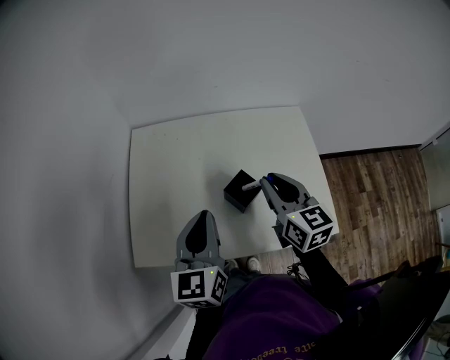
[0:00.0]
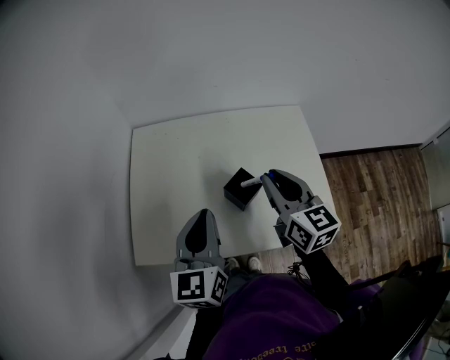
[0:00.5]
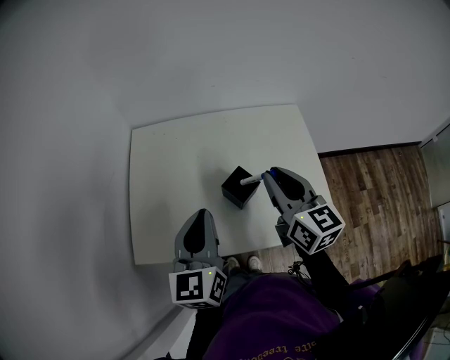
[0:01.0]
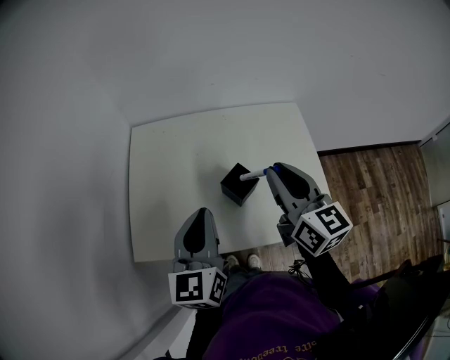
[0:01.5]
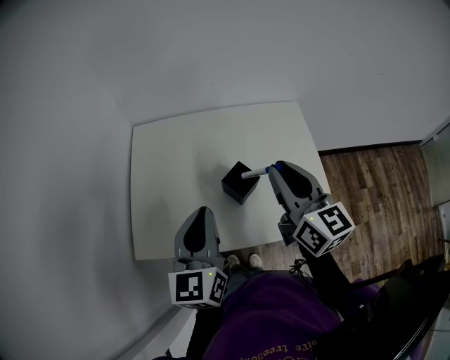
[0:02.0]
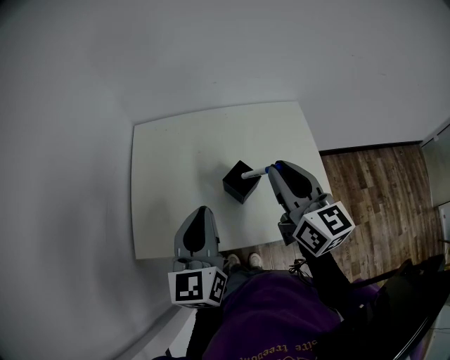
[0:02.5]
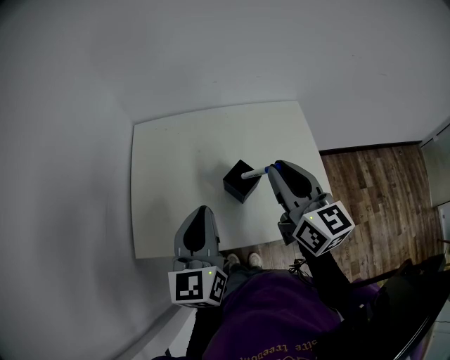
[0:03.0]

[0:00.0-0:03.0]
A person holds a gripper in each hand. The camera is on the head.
0:00.0 to 0:01.5: The right gripper heads upward, covering some 5 cm.
0:01.5 to 0:03.0: Both grippers stay put.

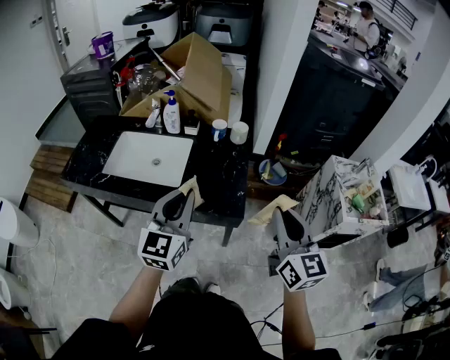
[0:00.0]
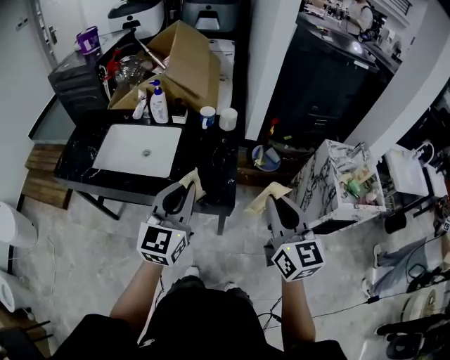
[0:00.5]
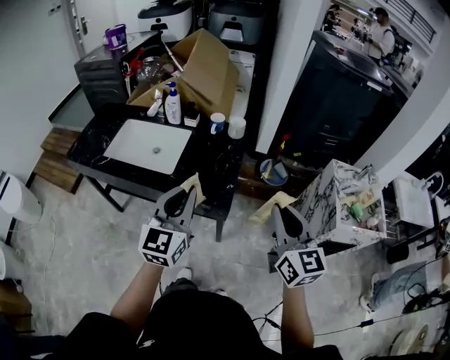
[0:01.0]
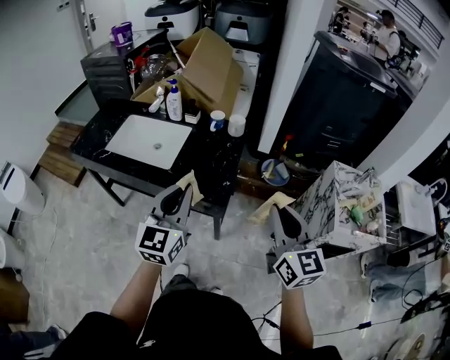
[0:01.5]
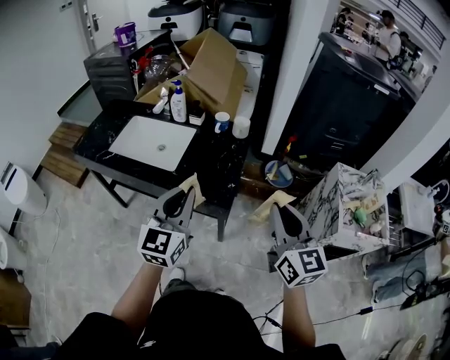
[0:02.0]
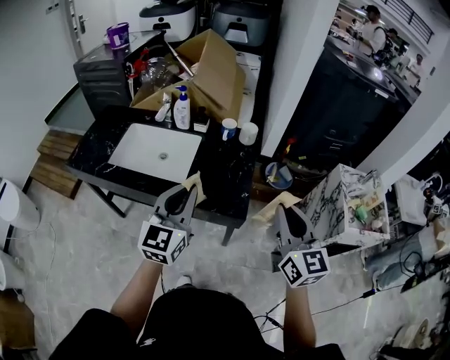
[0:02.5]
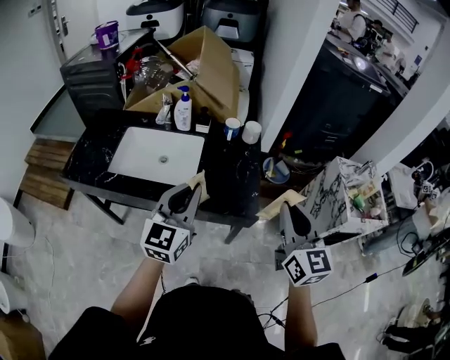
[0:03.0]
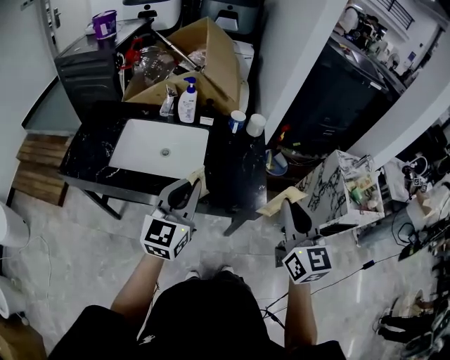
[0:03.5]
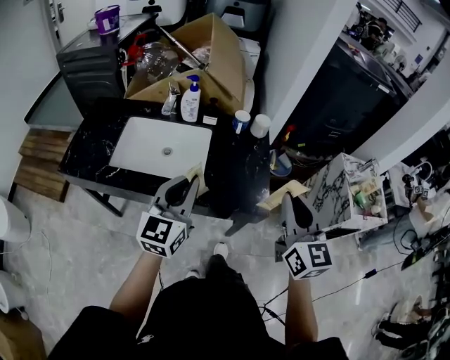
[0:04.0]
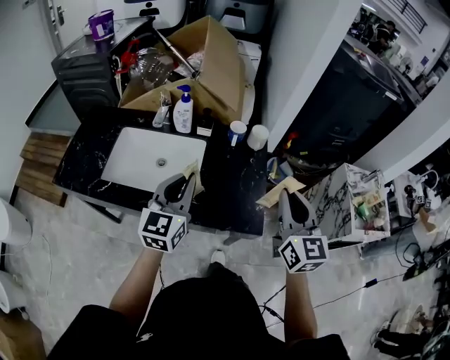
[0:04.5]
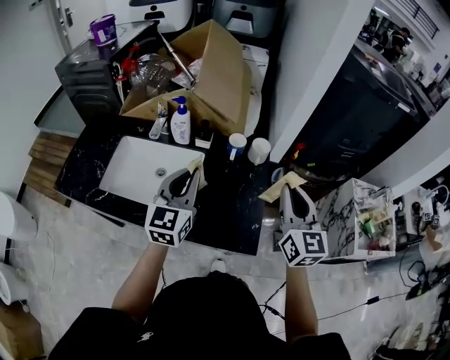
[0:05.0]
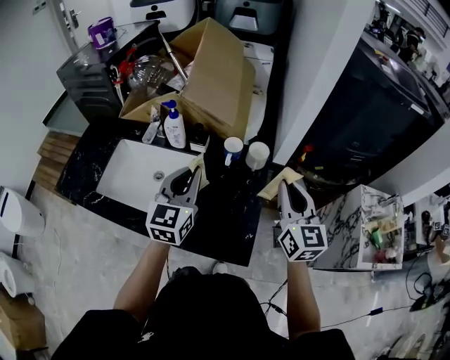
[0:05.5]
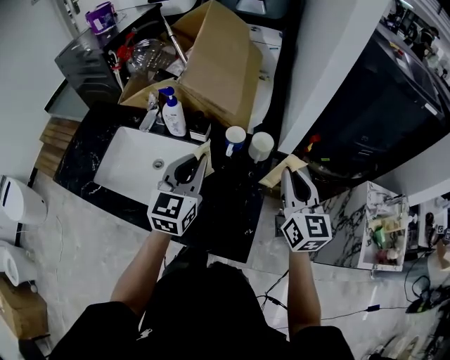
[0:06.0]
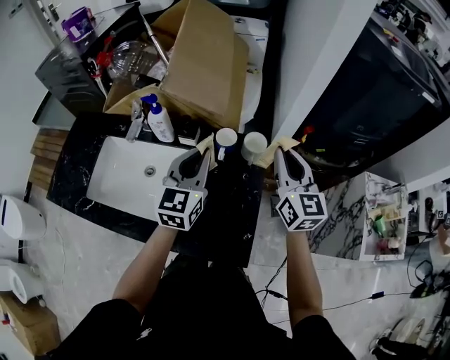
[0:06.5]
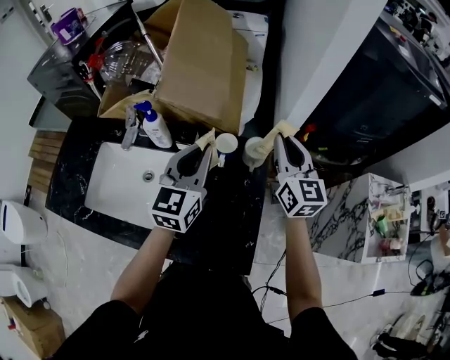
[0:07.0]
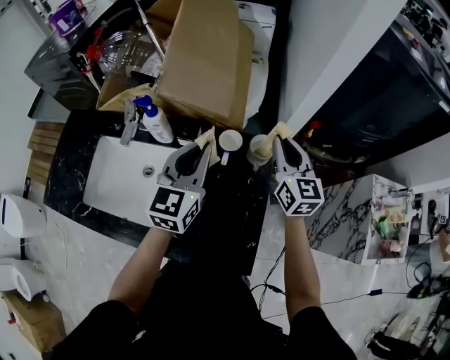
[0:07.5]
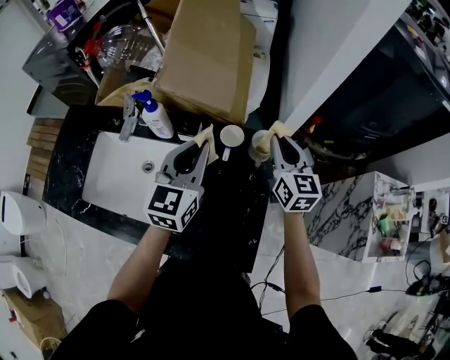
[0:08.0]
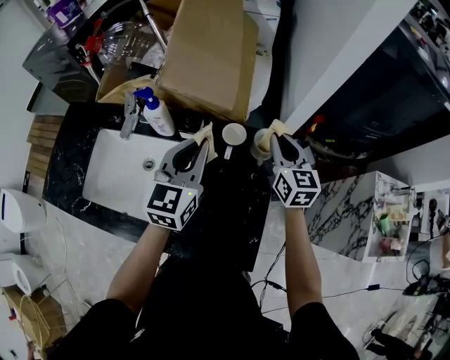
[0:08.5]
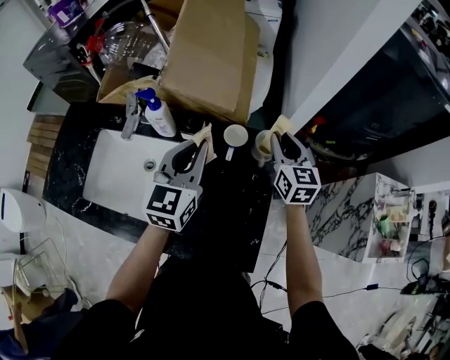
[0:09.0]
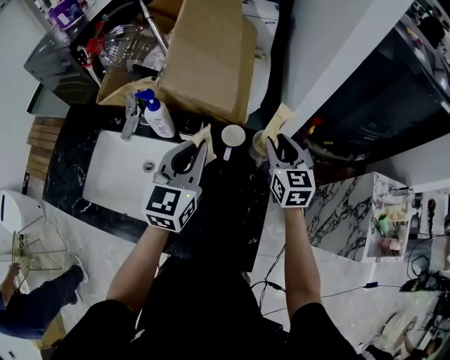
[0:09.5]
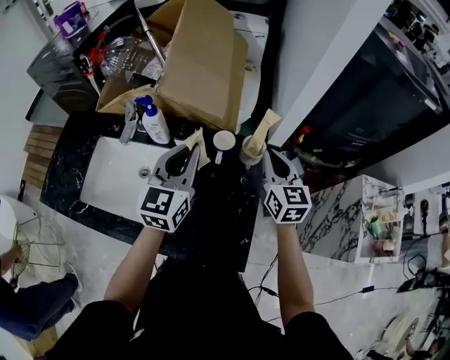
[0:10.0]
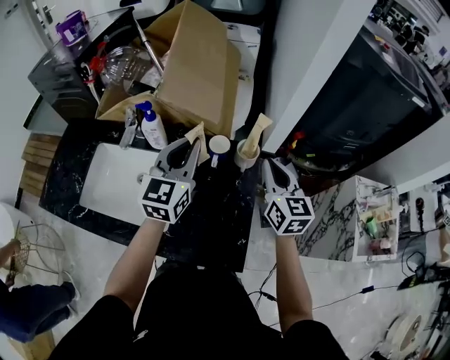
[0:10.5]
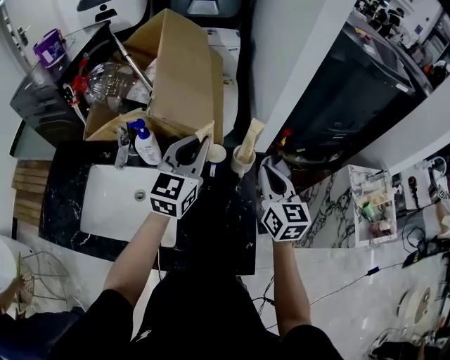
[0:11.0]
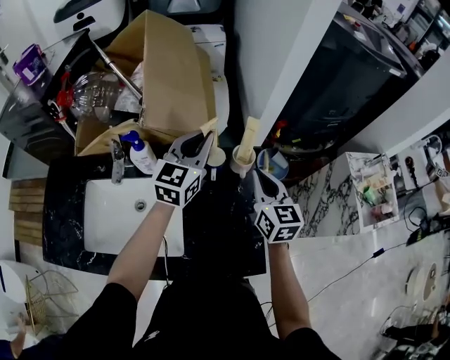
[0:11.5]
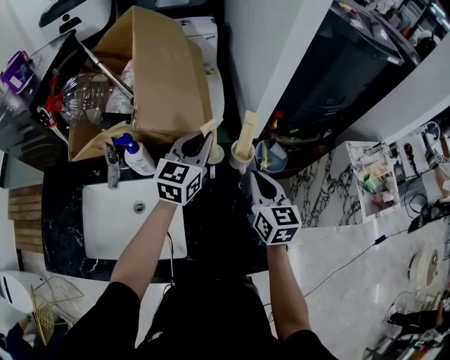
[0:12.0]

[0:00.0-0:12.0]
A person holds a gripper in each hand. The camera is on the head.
0:00.0 to 0:02.0: Both grippers travel together to the right, some 10 cm.
0:02.0 to 0:04.0: The left gripper heads to the left and forward, covering roughly 20 cm, while the right gripper goes about 20 cm to the left.
0:04.0 to 0:06.0: The right gripper shifts roughly 30 cm forward. Meanwhile the left gripper is displaced forward and to the right by some 25 cm.
0:06.0 to 0:08.0: The right gripper goes roughly 15 cm forward and downward. The left gripper goes roughly 10 cm forward.
0:08.0 to 0:10.0: The right gripper opens, then closes again.
0:10.0 to 0:12.0: The right gripper heads backward, covering roughly 5 cm; the left gripper shifts about 10 cm forward, and swivels about 20 degrees.

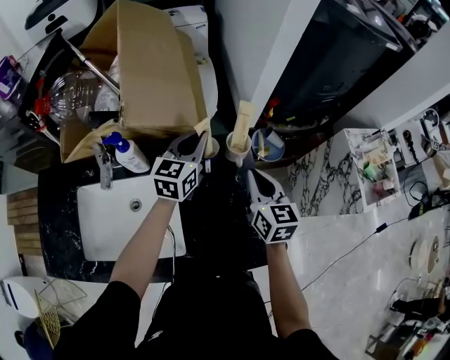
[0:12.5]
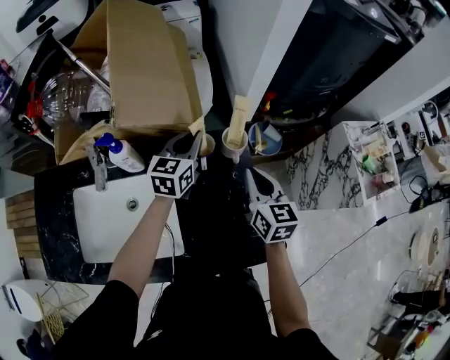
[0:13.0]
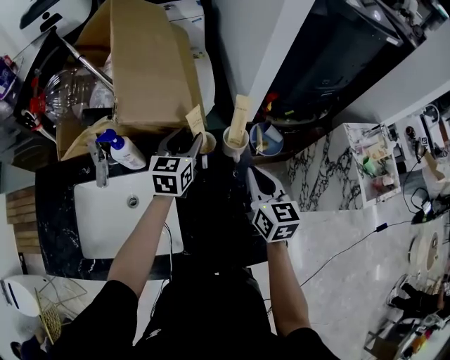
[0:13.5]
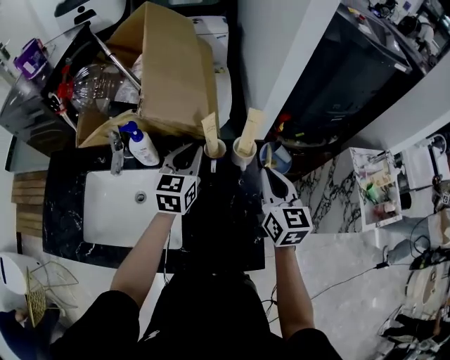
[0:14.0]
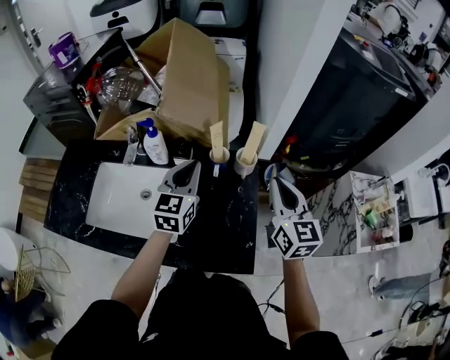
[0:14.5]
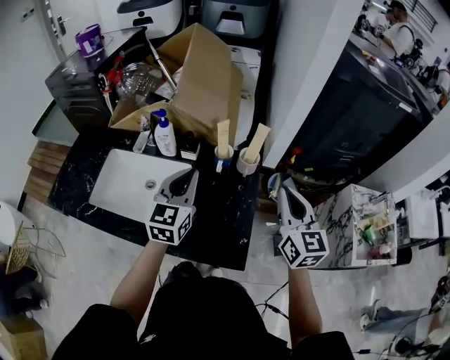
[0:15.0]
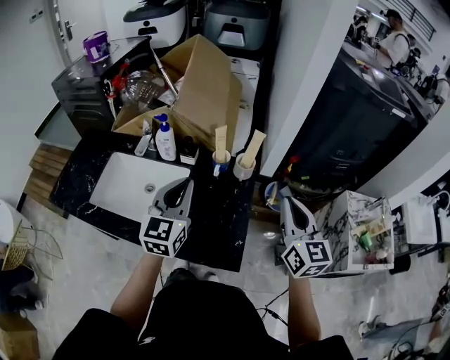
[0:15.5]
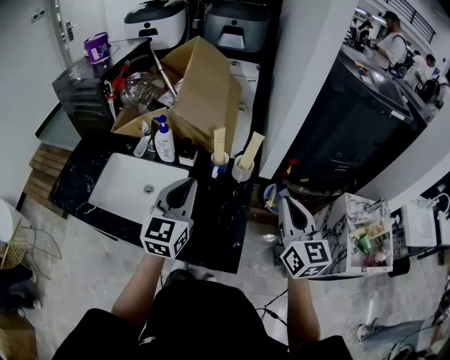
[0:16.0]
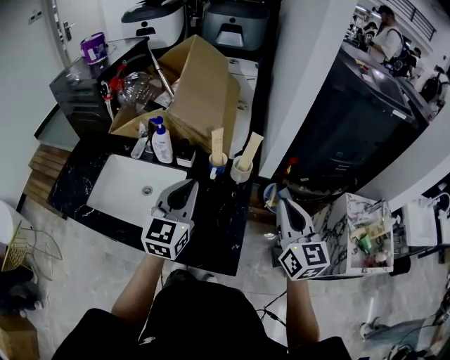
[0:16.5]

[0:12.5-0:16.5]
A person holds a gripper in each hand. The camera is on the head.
0:12.5 to 0:14.5: The right gripper goes some 10 cm upward and to the right. Meanwhile the left gripper travels backward and upward by some 15 cm, rotates about 20 degrees, and opens and closes again.
0:14.5 to 0:16.5: The left gripper shifts roughly 10 cm backward and upward, while the right gripper heads backward and to the right, covering about 10 cm.

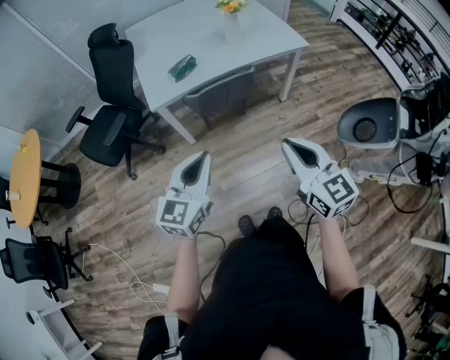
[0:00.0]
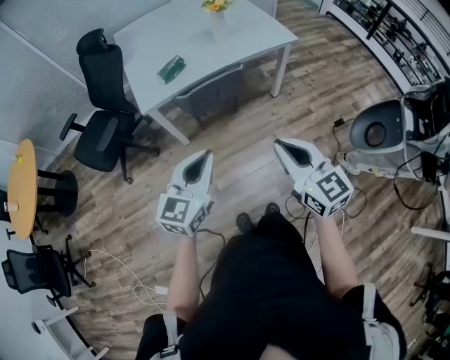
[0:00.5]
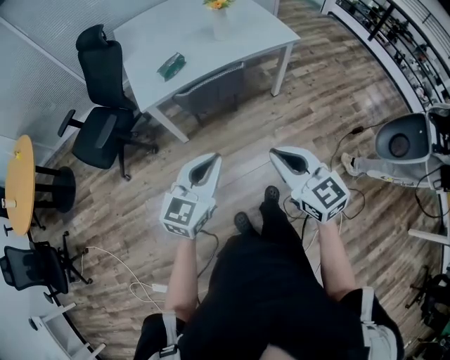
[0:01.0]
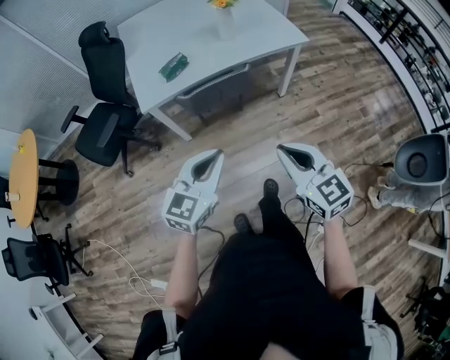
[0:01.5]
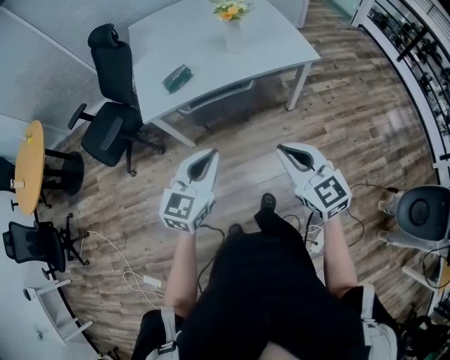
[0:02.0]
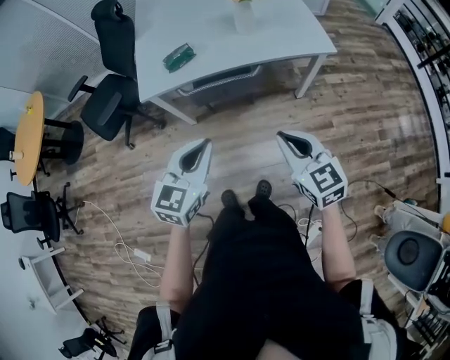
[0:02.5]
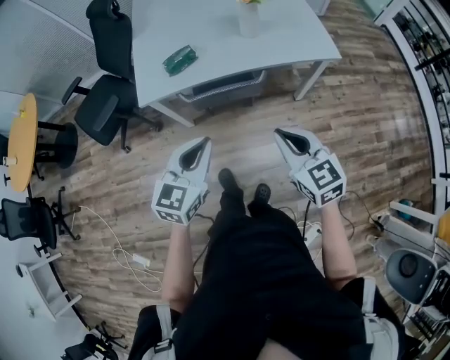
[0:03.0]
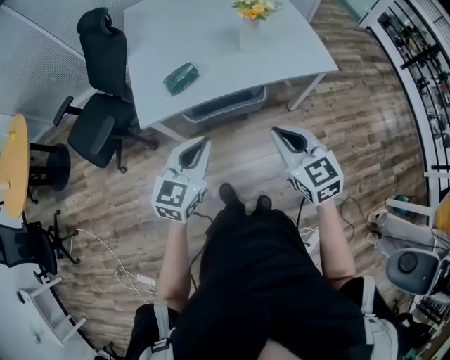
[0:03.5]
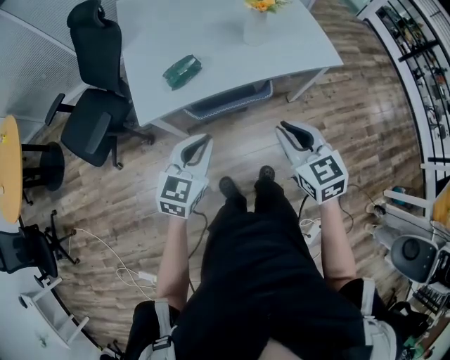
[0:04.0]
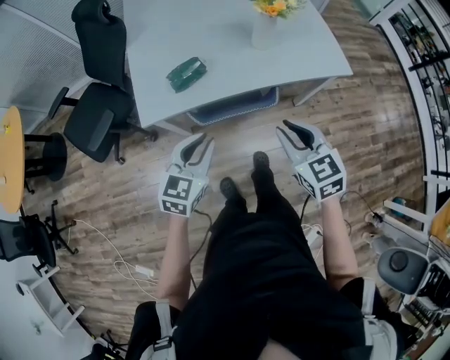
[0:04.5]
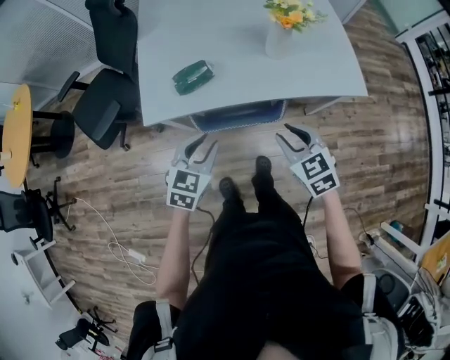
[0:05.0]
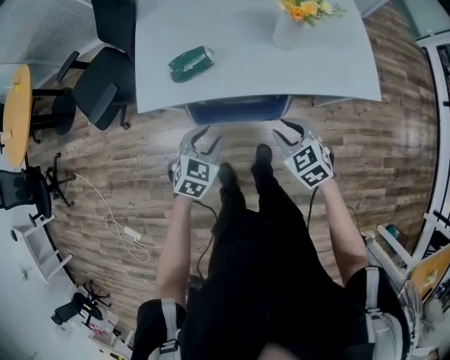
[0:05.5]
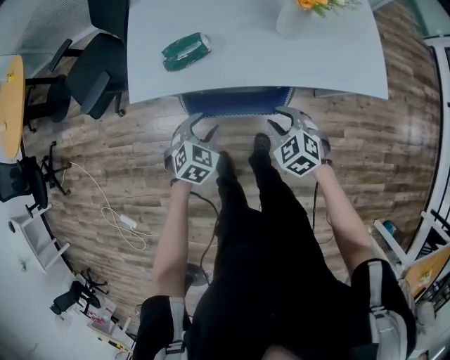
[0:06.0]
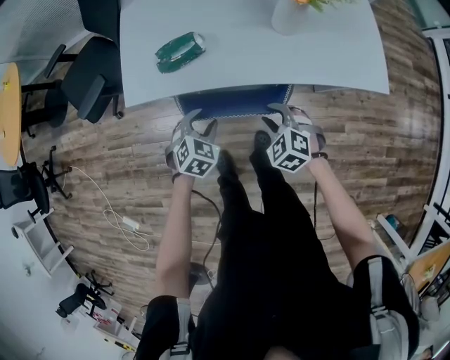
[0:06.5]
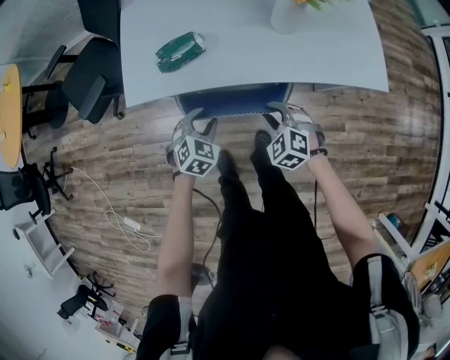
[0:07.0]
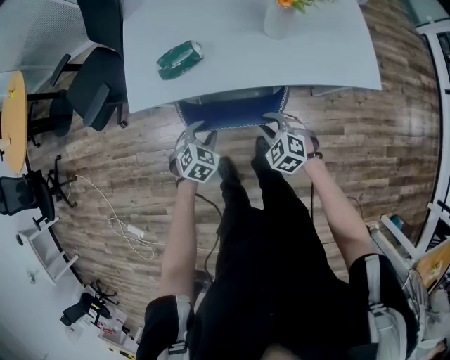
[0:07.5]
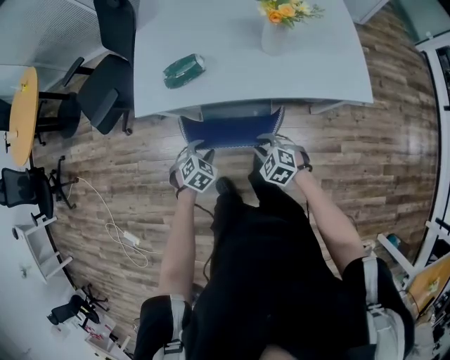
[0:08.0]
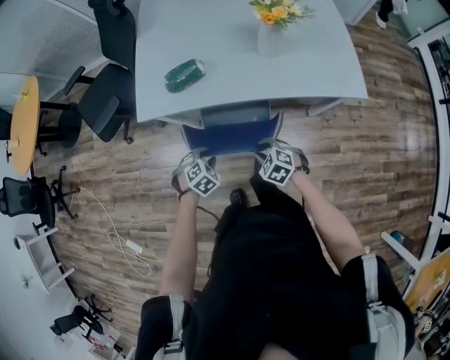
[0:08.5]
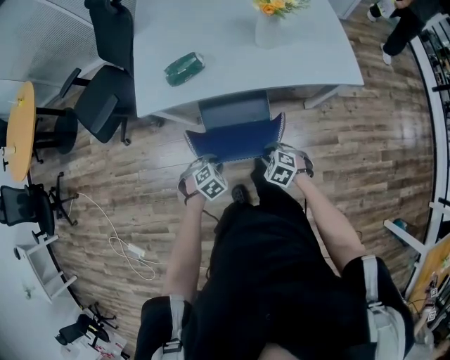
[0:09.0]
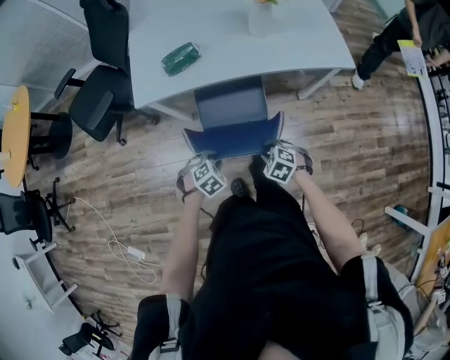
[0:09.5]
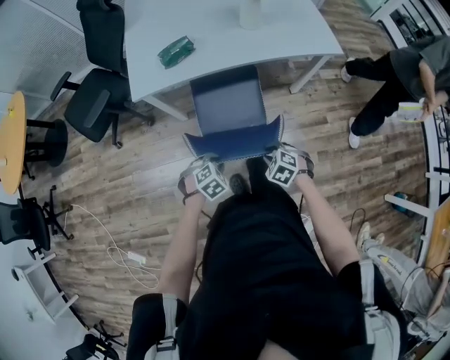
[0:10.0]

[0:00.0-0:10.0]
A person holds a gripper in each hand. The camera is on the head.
0:00.0 to 0:02.0: The two grippers go some 15 cm forward and to the right.
0:02.0 to 0:04.0: The left gripper goes roughly 20 cm forward, to the left and downward; the right gripper heads forward and to the left, covering about 20 cm.
0:04.0 to 0:06.0: Both grippers move downward and forward, about 25 cm. The left gripper tips its fingers downward by about 30 degrees, and opens its fingers, while the right gripper turns by some 40 degrees.
0:06.0 to 0:08.0: The right gripper shifts roughly 10 cm backward and downward. Meanwhile the left gripper is displaced downward and backward by some 10 cm.
0:08.0 to 0:10.0: The grippers both shift backward by roughly 20 cm. The left gripper changes its angle by about 20 degrees.
